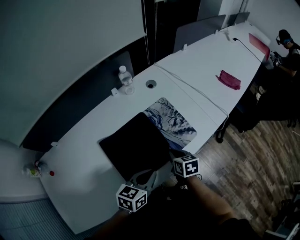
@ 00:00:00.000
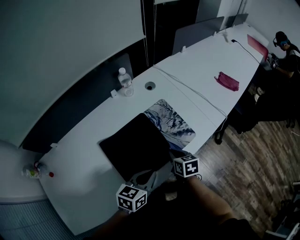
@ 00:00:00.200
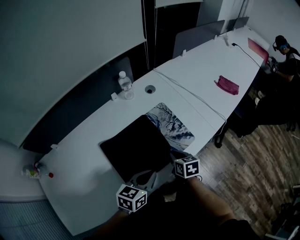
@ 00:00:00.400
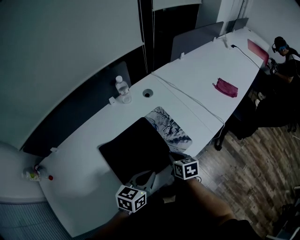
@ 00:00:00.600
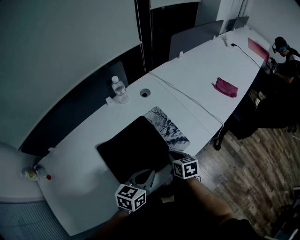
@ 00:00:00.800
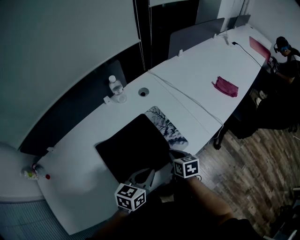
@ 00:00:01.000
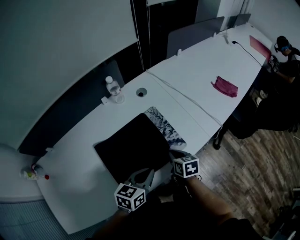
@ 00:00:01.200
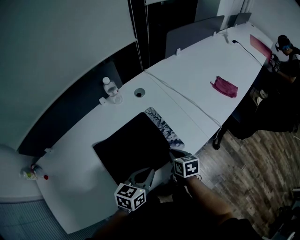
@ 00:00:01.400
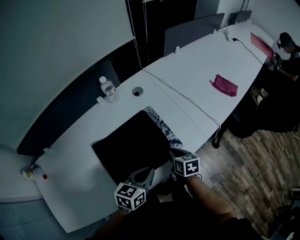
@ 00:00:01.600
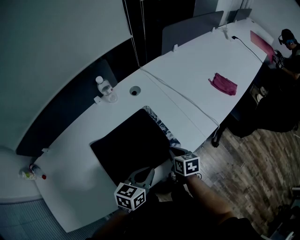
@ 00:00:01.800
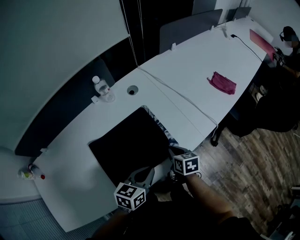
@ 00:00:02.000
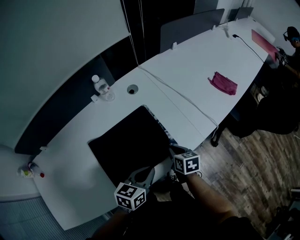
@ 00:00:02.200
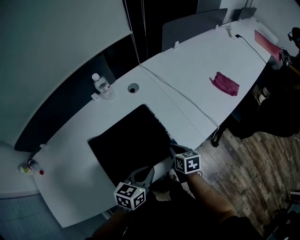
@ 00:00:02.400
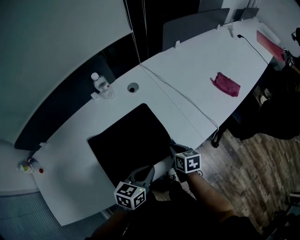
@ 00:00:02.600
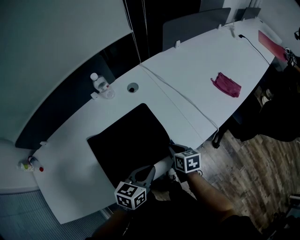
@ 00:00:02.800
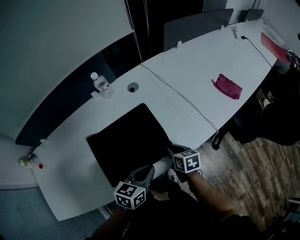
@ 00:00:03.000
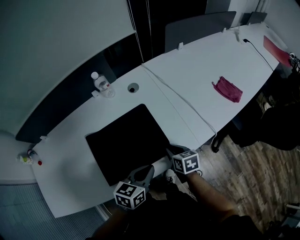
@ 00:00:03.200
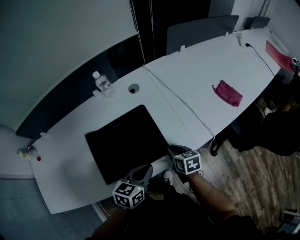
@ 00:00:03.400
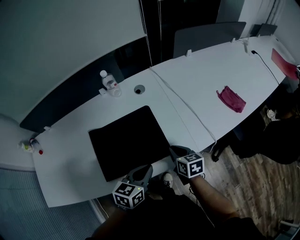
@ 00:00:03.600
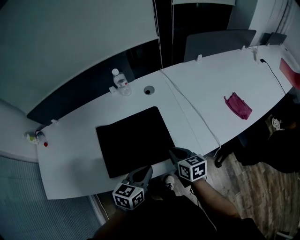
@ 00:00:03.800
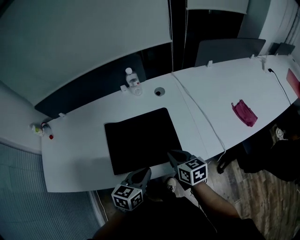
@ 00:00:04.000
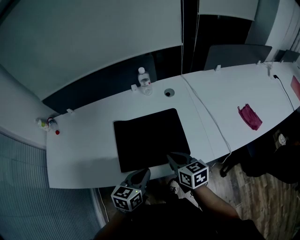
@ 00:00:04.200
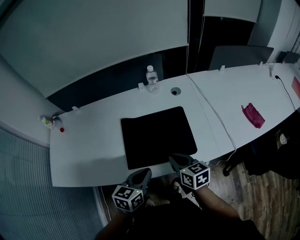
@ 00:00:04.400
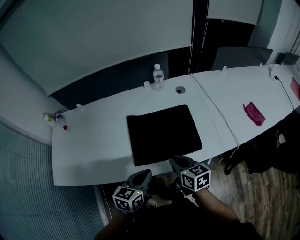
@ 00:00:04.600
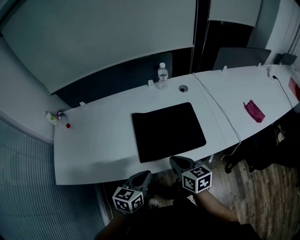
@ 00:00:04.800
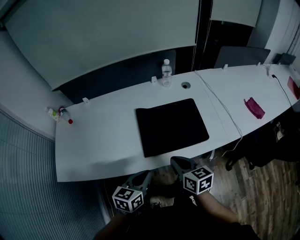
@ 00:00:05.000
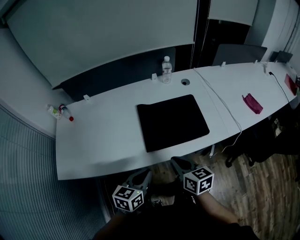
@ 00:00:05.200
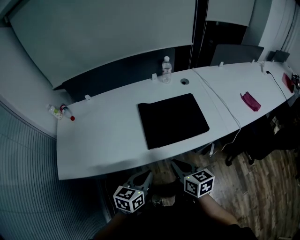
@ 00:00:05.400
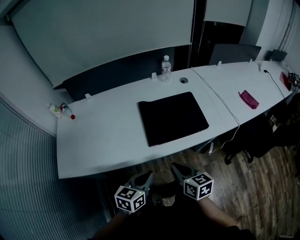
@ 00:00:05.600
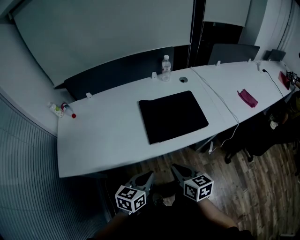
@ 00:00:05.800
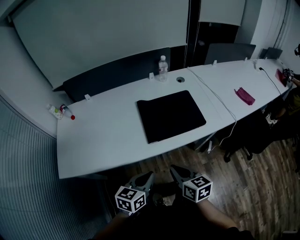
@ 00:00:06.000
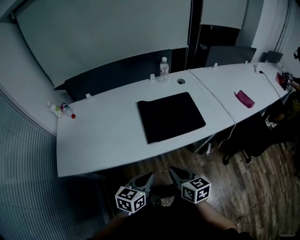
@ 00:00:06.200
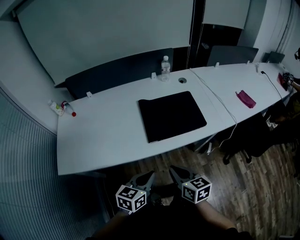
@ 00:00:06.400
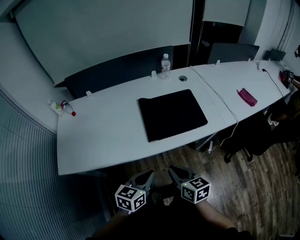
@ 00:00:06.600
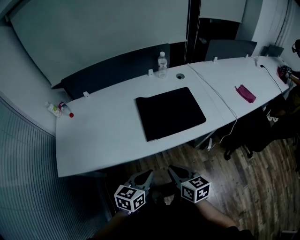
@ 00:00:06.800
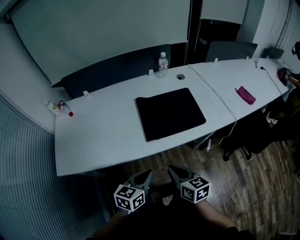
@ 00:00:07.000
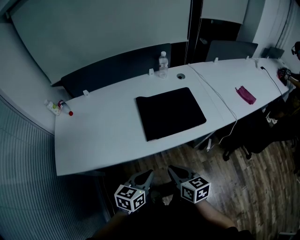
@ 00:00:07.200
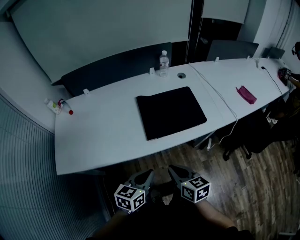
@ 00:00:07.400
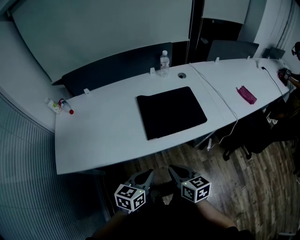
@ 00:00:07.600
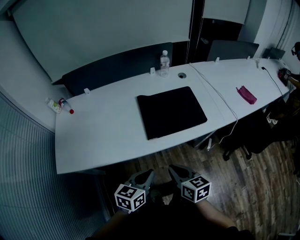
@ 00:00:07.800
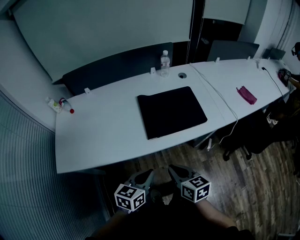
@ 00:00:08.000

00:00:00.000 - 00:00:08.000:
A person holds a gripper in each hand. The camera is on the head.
00:00:00.000 - 00:00:01.600: The two grippers go approximately 10 cm to the right and forward.
00:00:01.600 - 00:00:03.200: The left gripper is displaced to the right by roughly 5 cm, while the right gripper shifts by approximately 5 cm.
00:00:03.200 - 00:00:04.800: The right gripper moves to the left, upward and backward, approximately 25 cm, and changes its angle by about 30 degrees; the left gripper moves to the left and backward, some 20 cm, and turns by some 20 degrees.
00:00:04.800 - 00:00:06.400: Both grippers travel together backward, about 15 cm.
00:00:06.400 - 00:00:08.000: Both grippers stay put.

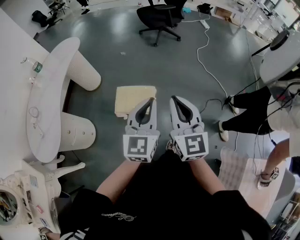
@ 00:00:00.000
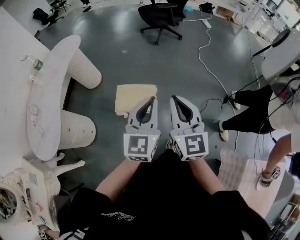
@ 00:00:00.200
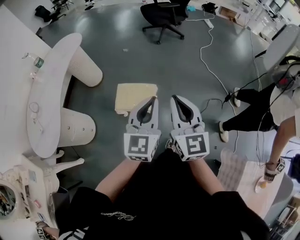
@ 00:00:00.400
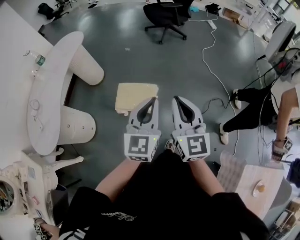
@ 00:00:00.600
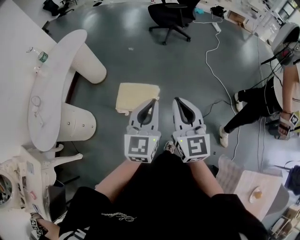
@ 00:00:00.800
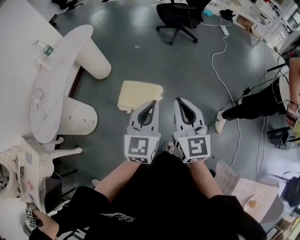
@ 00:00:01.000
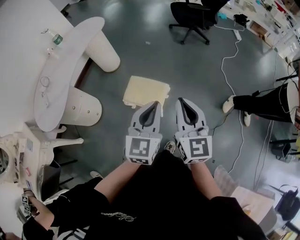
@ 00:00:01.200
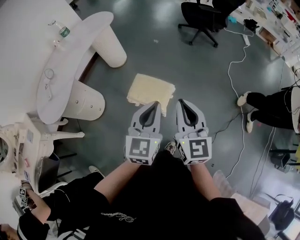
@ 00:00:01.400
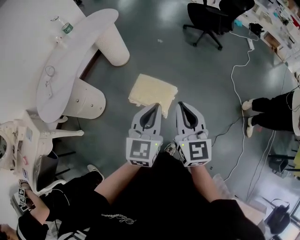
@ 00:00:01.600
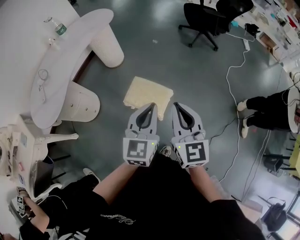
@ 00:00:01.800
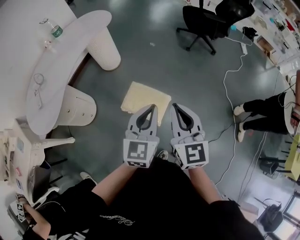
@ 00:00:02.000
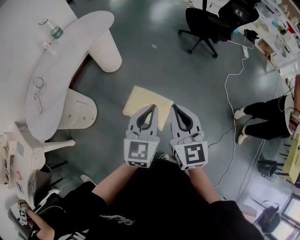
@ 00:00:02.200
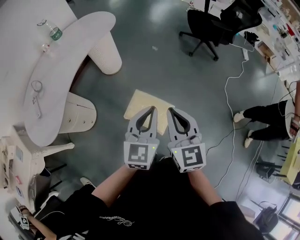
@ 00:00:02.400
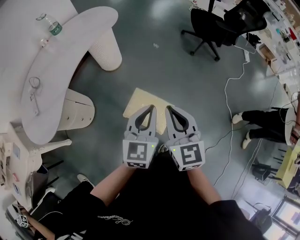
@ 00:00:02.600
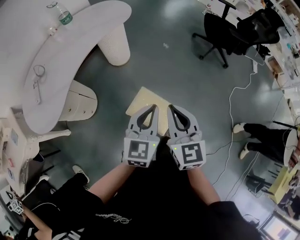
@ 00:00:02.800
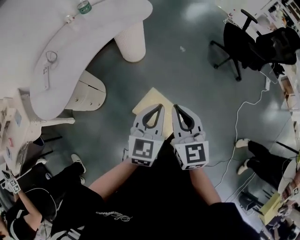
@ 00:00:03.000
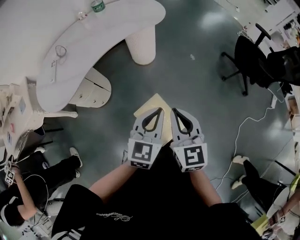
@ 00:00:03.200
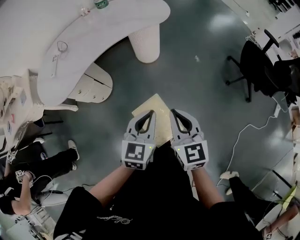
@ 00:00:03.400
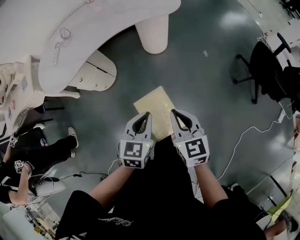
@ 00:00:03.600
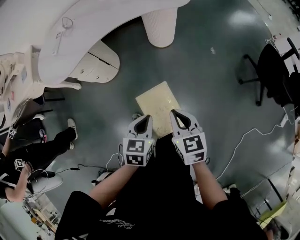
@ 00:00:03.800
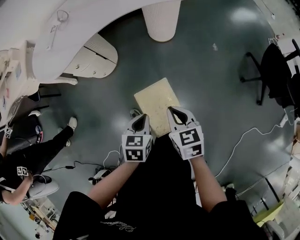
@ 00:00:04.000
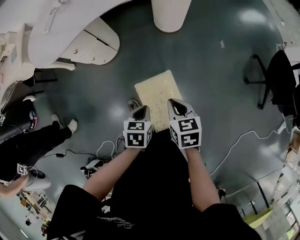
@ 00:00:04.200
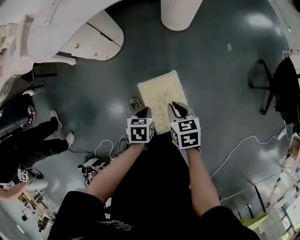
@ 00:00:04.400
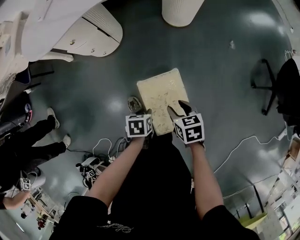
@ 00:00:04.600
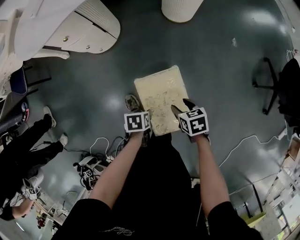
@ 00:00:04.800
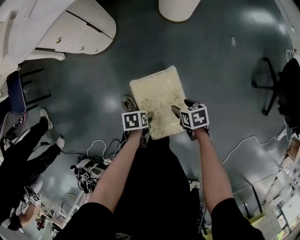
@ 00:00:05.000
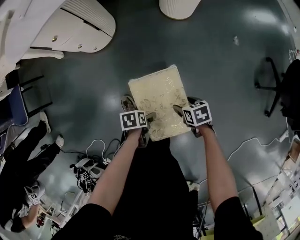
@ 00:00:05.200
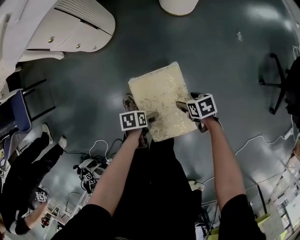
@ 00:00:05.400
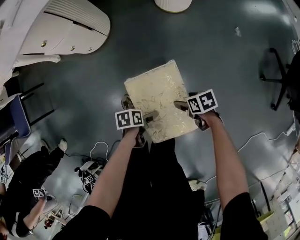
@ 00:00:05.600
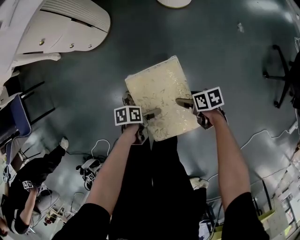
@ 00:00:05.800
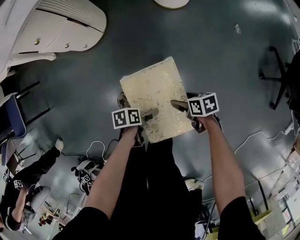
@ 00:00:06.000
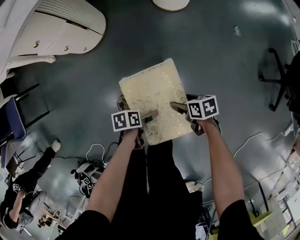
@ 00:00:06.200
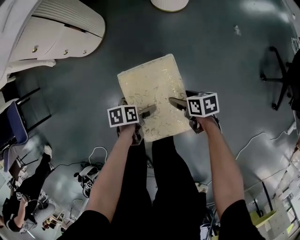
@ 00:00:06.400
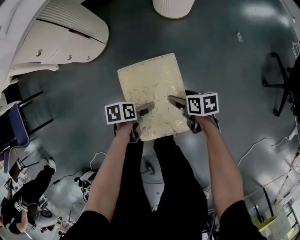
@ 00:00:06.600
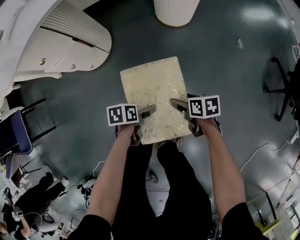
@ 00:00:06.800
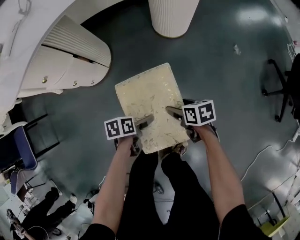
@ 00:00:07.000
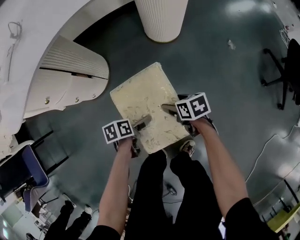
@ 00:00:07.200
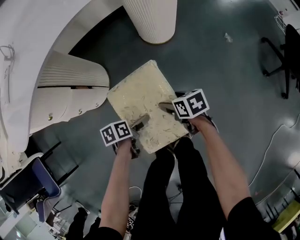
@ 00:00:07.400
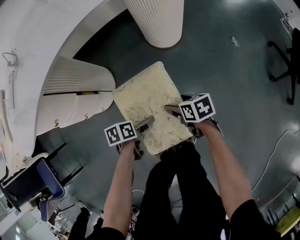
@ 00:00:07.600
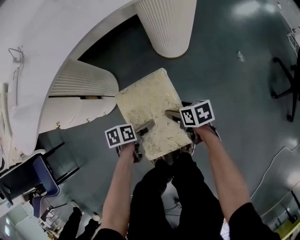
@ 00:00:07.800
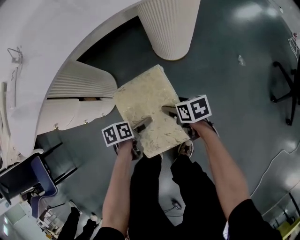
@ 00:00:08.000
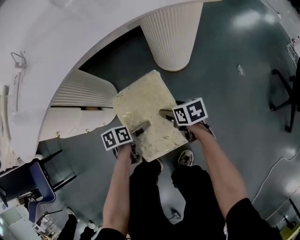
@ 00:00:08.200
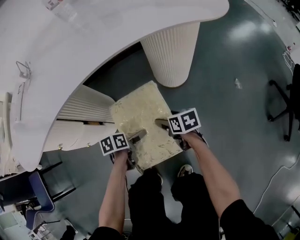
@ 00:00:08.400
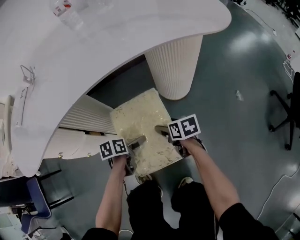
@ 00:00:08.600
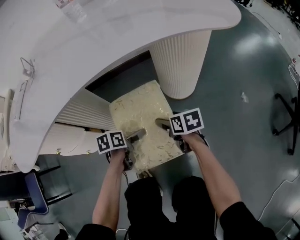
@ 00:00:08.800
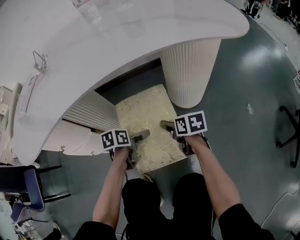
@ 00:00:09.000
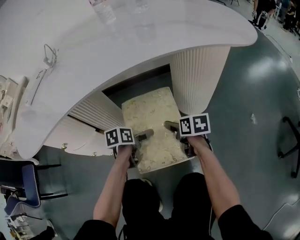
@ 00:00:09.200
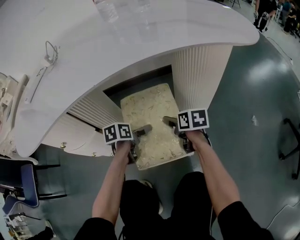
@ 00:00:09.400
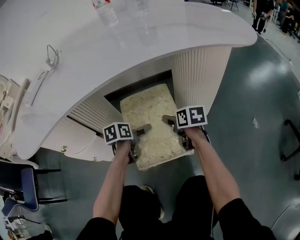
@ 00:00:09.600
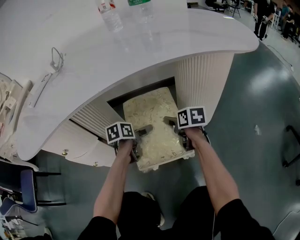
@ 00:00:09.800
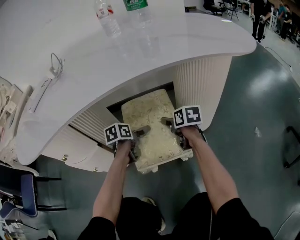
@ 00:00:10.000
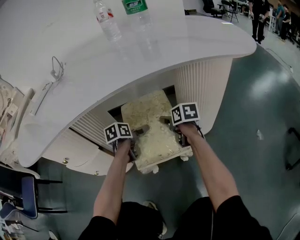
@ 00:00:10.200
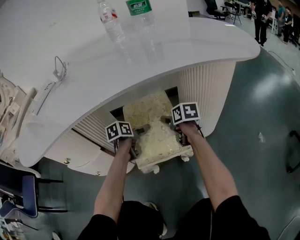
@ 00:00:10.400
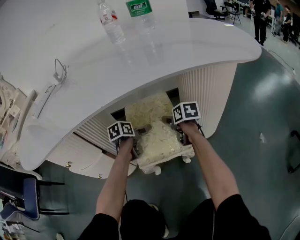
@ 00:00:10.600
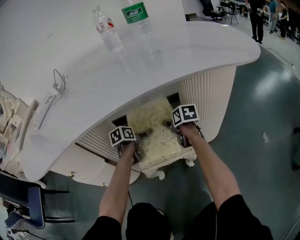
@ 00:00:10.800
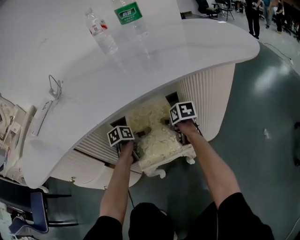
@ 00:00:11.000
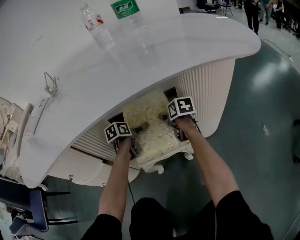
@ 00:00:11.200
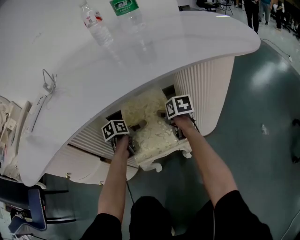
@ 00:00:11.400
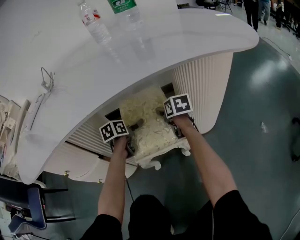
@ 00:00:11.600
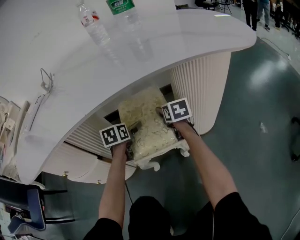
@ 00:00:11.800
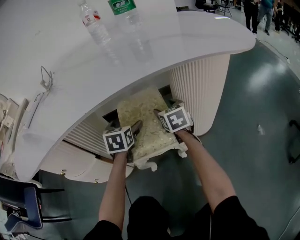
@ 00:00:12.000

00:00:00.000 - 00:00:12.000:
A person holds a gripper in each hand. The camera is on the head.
00:00:00.000 - 00:00:01.600: The left gripper moves some 5 cm. The right gripper moves forward, about 5 cm.
00:00:01.600 - 00:00:03.000: Both grippers move forward and to the left, roughly 25 cm. The right gripper rotates approximately 20 degrees.
00:00:03.000 - 00:00:04.400: The two grippers go about 35 cm downward. The left gripper tips its fingers downward by some 50 degrees. The right gripper angles its fingers downward, by about 40 degrees.
00:00:04.400 - 00:00:06.000: The grippers both shift downward by about 25 cm. The right gripper turns by roughly 30 degrees, and opens up; the left gripper rotates roughly 40 degrees, and opens.
00:00:06.000 - 00:00:07.600: The left gripper moves about 30 cm; the right gripper changes place by roughly 25 cm.
00:00:07.600 - 00:00:09.000: Both grippers travel together forward, some 20 cm.
00:00:09.000 - 00:00:10.400: The grippers both shift forward by some 15 cm.
00:00:10.400 - 00:00:12.000: The right gripper heads upward, covering some 5 cm, and rotates some 30 degrees. Meanwhile the left gripper moves upward, roughly 10 cm, and changes its angle by about 40 degrees.

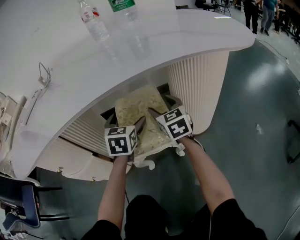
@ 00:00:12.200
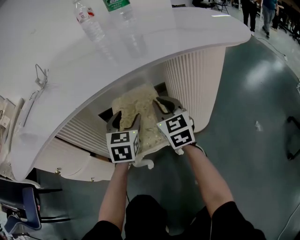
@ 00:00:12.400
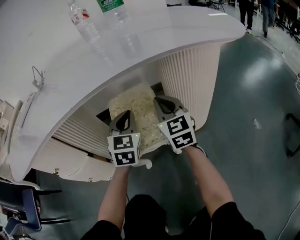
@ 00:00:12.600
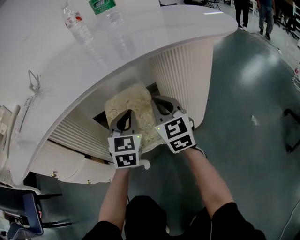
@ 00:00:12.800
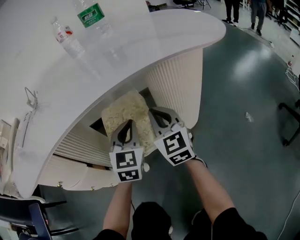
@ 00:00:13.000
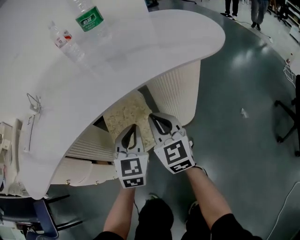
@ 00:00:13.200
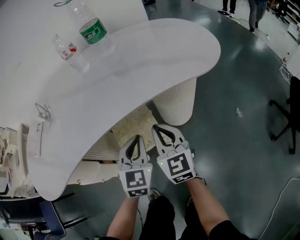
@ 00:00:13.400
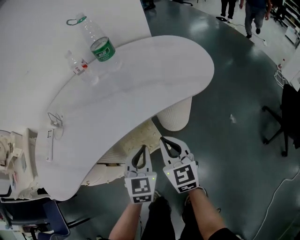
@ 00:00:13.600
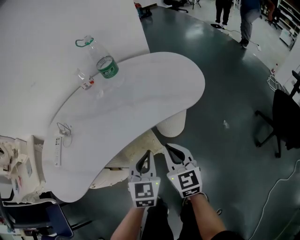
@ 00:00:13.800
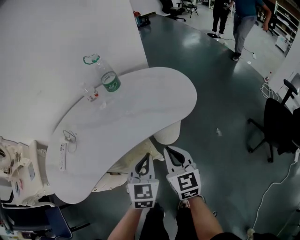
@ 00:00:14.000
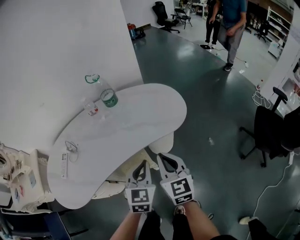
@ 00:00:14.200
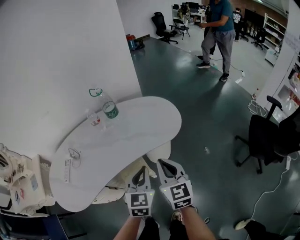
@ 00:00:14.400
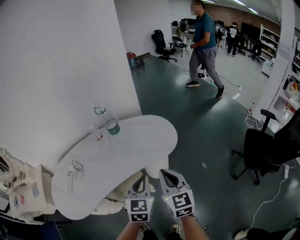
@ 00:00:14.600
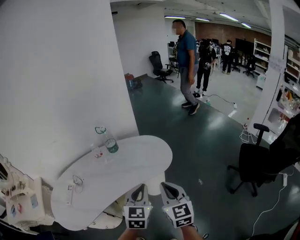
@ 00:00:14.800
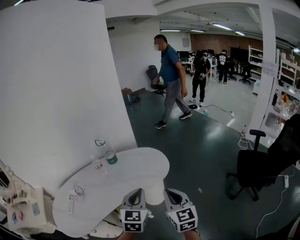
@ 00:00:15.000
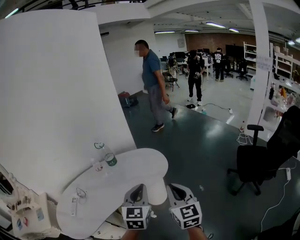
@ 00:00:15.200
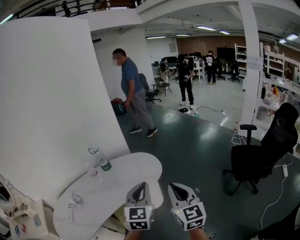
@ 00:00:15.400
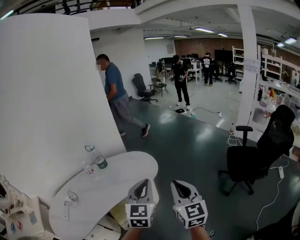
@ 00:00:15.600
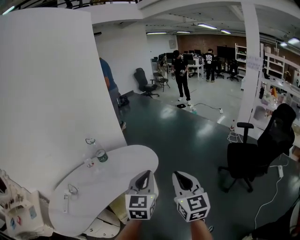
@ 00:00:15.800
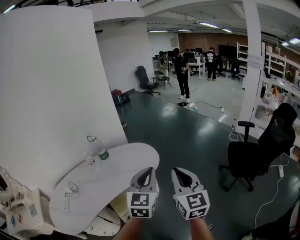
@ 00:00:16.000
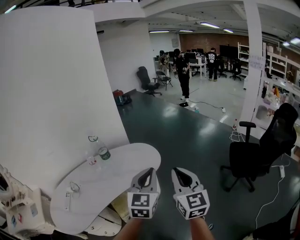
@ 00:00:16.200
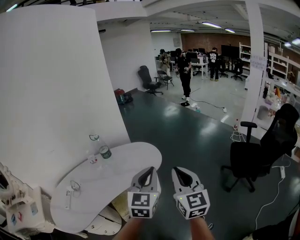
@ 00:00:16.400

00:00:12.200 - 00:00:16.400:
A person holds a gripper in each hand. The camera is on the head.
00:00:12.200 - 00:00:13.600: The right gripper travels upward and backward by about 30 cm, and closes its fingers. The left gripper is displaced upward, backward and to the right by some 30 cm, and closes.
00:00:13.600 - 00:00:15.000: The right gripper is displaced upward and to the right by about 40 cm. Meanwhile the left gripper moves upward, some 40 cm.
00:00:15.000 - 00:00:16.400: Both grippers travel together to the right and upward, roughly 10 cm.
